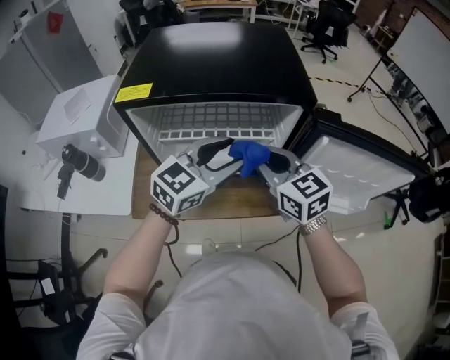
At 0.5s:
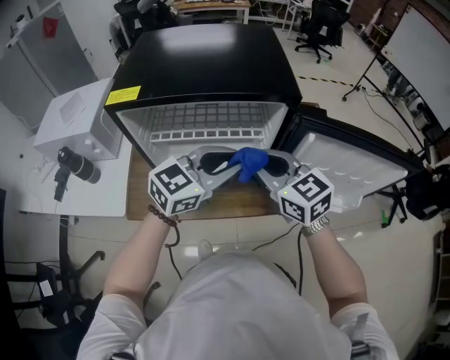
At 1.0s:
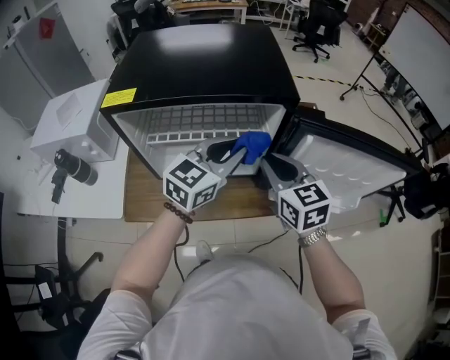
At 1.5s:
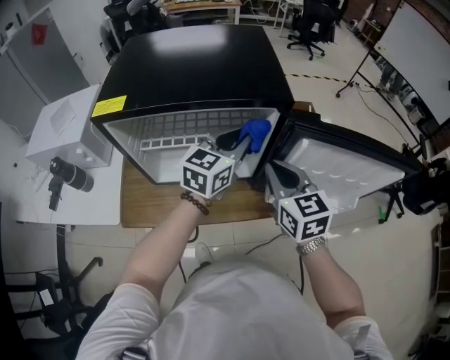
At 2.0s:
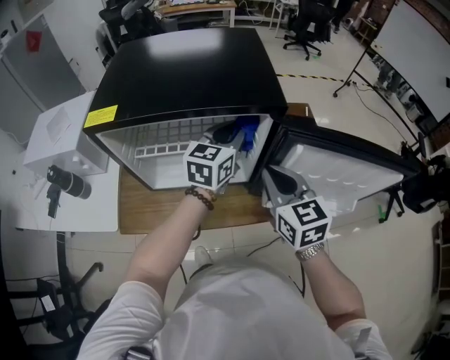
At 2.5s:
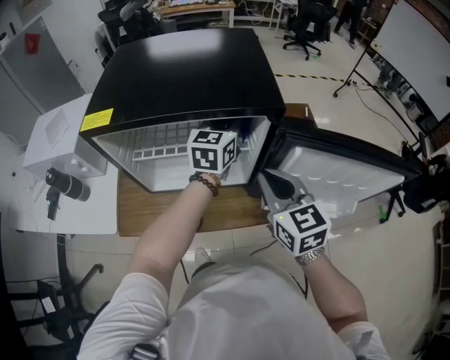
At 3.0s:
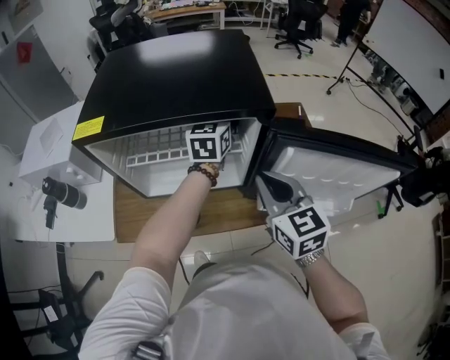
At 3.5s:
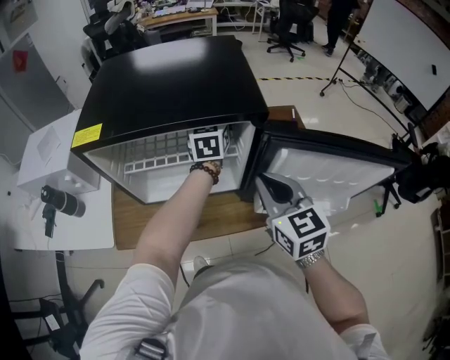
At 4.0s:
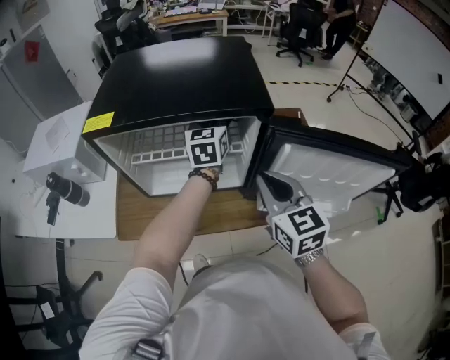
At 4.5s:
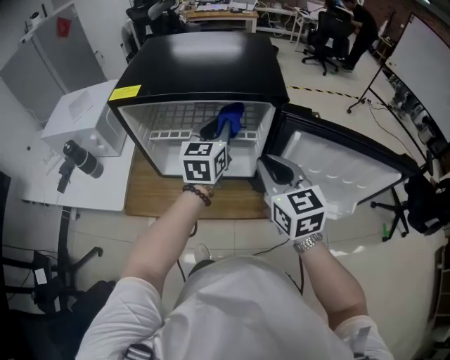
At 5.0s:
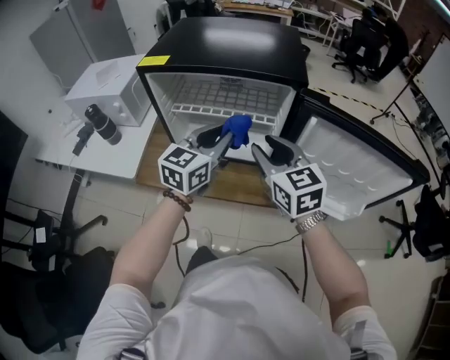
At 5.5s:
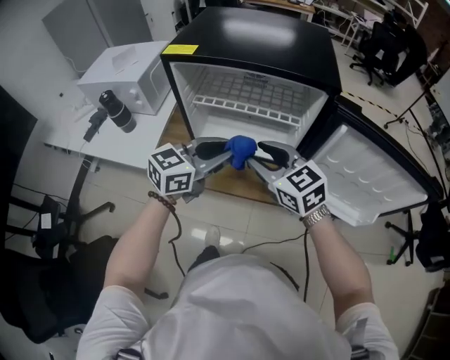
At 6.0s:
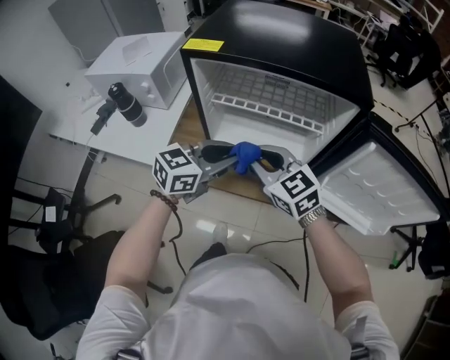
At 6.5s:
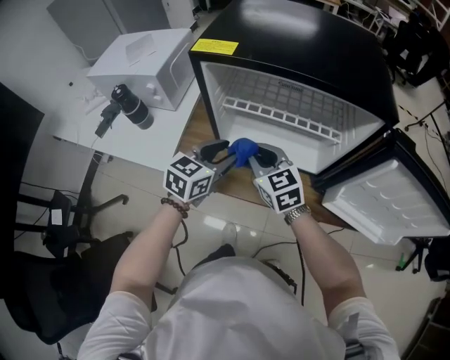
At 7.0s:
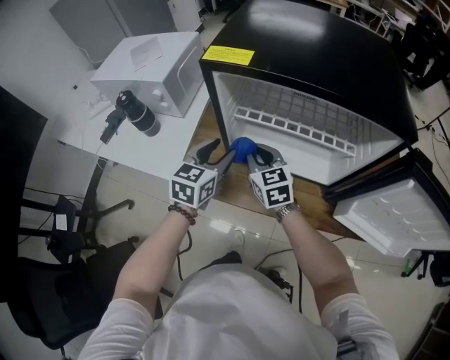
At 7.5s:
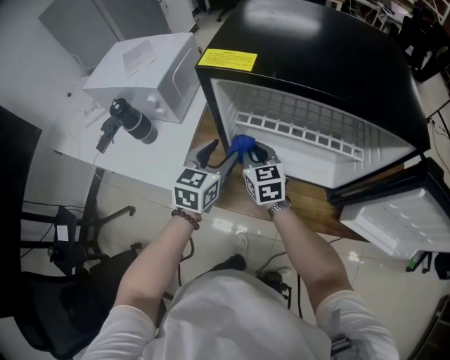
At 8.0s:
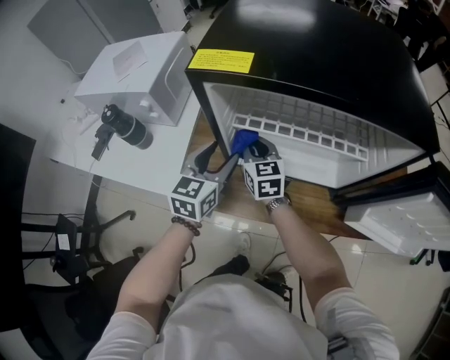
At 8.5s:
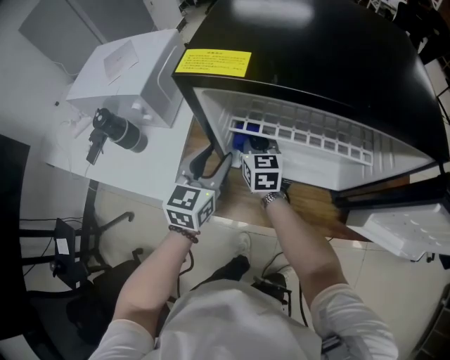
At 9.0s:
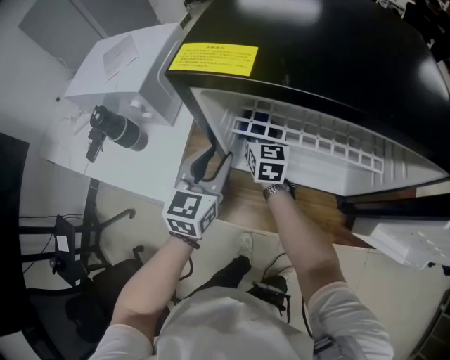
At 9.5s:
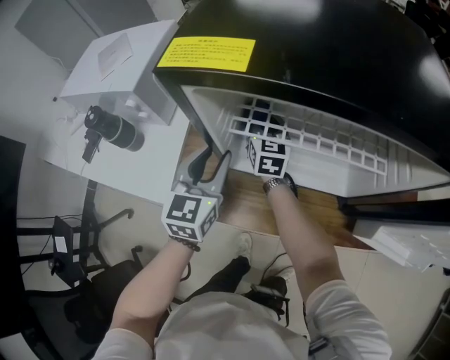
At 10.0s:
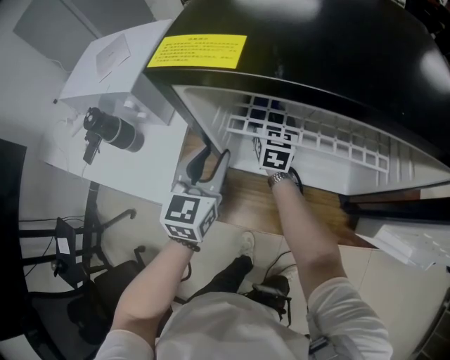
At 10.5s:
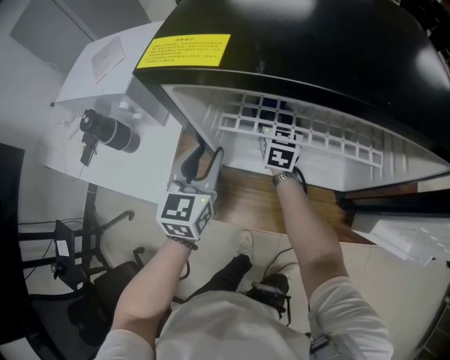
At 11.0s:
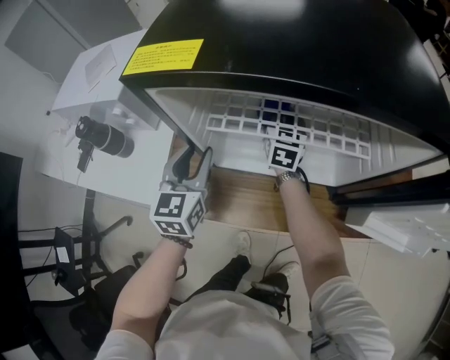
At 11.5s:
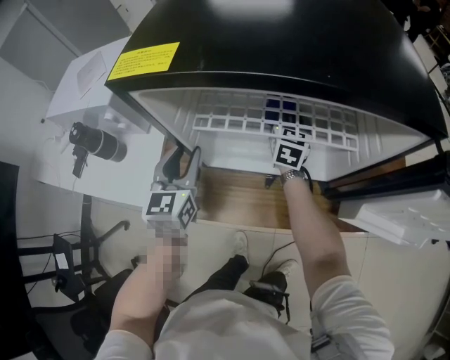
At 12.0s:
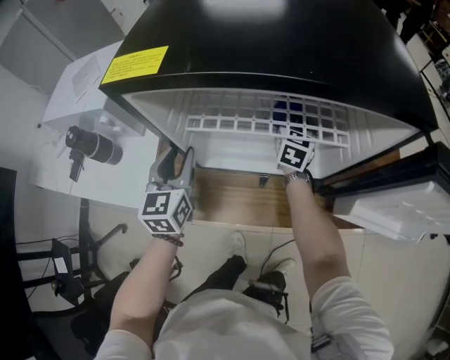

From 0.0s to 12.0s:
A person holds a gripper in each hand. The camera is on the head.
From 0.0s to 2.0s: The right gripper shifts about 10 cm to the right. The left gripper is displaced forward and to the right by roughly 15 cm, swivels some 20 degrees, and closes up.
From 2.0s to 4.0s: The left gripper goes approximately 5 cm forward.
From 4.0s to 6.0s: The left gripper is displaced backward and to the left by roughly 30 cm, and rotates some 30 degrees. The right gripper is displaced to the left by approximately 20 cm, swivels roughly 40 degrees, and opens, then closes again.
From 6.0s to 8.0s: The right gripper goes approximately 25 cm forward, downward and to the left, and changes its angle by about 30 degrees. The left gripper heads forward, to the left and downward, covering some 20 cm, changes its angle by about 30 degrees, and opens.
From 8.0s to 10.0s: The left gripper closes; the right gripper travels forward and to the right by approximately 15 cm.
From 10.0s to 12.0s: The right gripper is displaced to the right by some 20 cm.

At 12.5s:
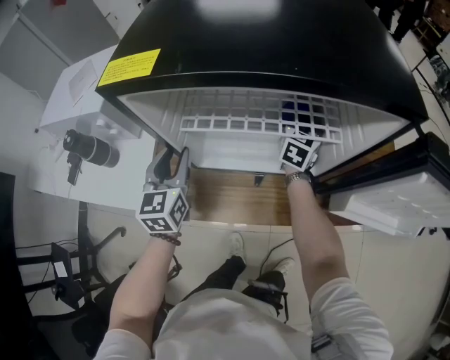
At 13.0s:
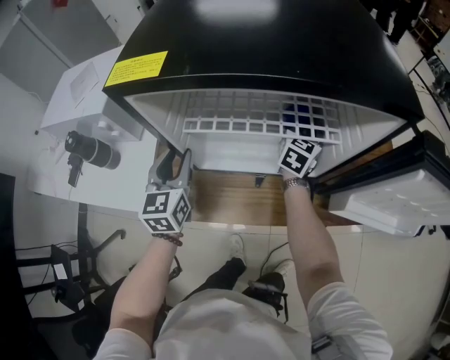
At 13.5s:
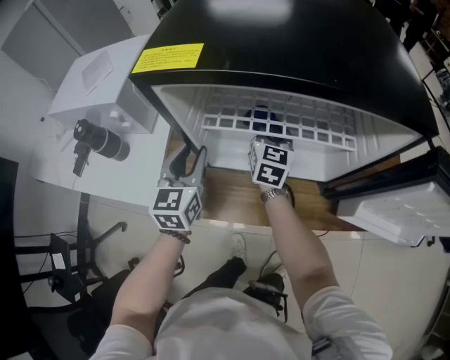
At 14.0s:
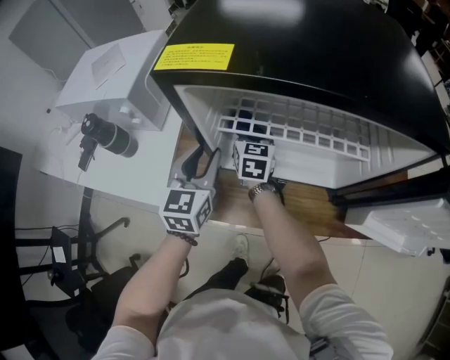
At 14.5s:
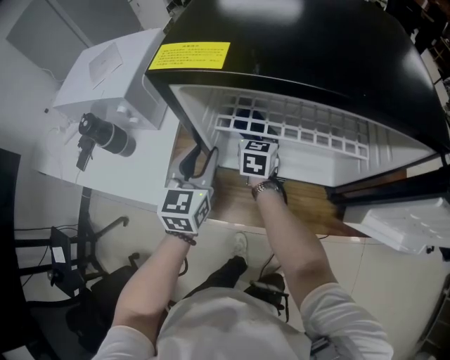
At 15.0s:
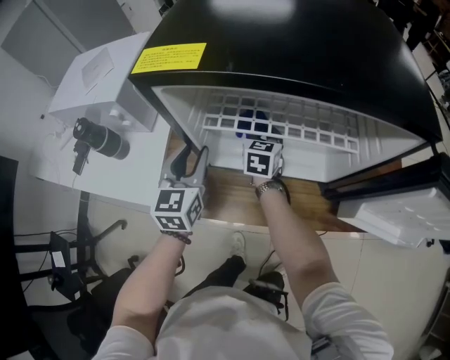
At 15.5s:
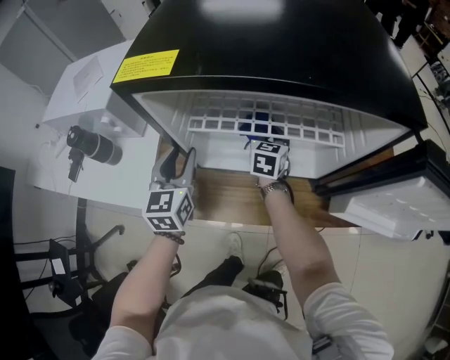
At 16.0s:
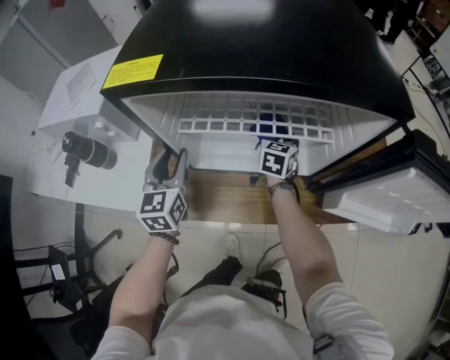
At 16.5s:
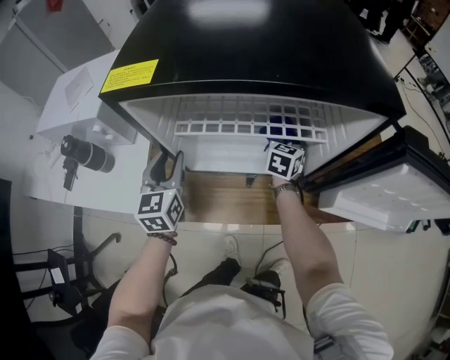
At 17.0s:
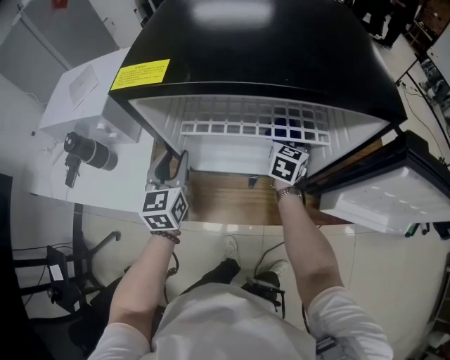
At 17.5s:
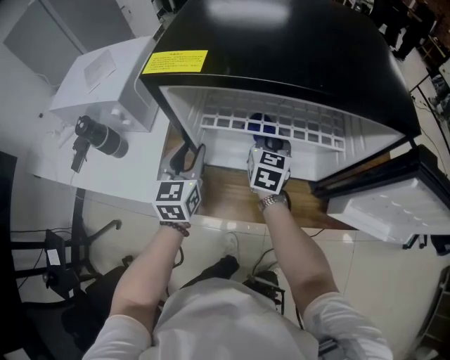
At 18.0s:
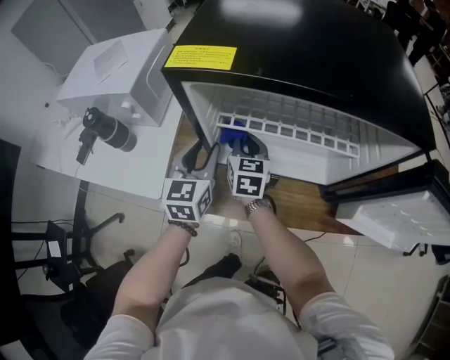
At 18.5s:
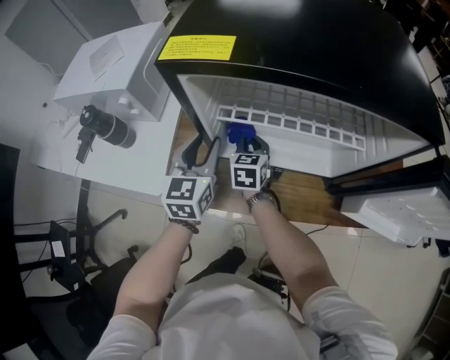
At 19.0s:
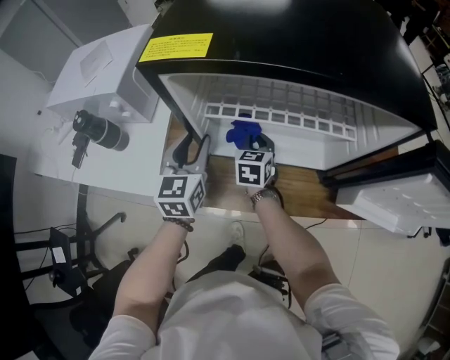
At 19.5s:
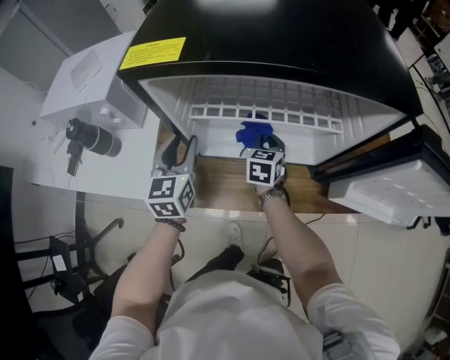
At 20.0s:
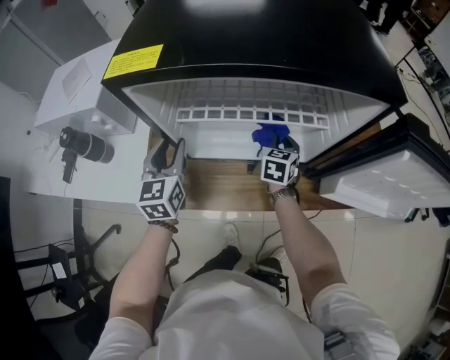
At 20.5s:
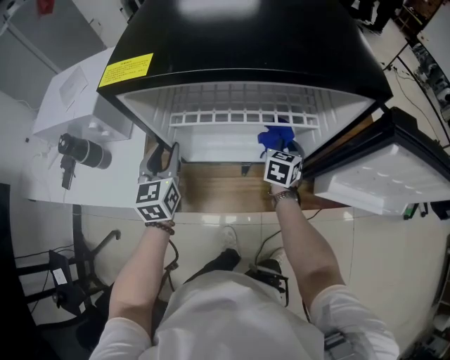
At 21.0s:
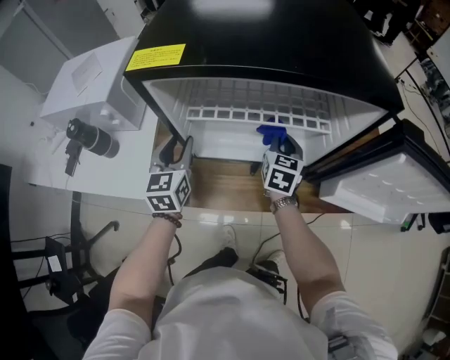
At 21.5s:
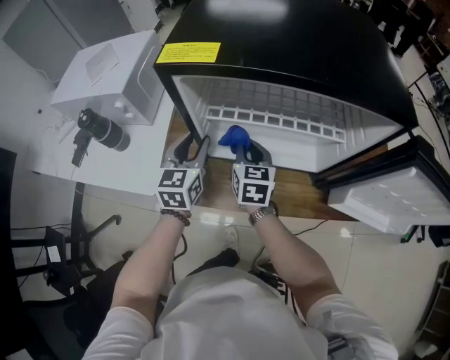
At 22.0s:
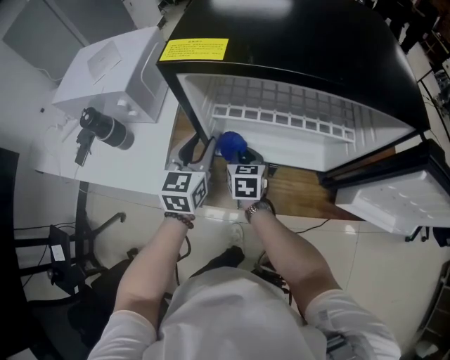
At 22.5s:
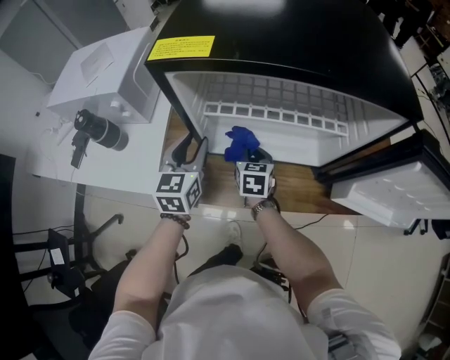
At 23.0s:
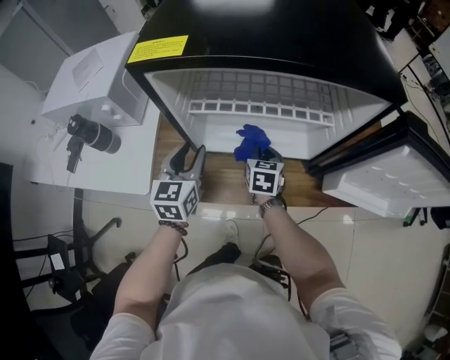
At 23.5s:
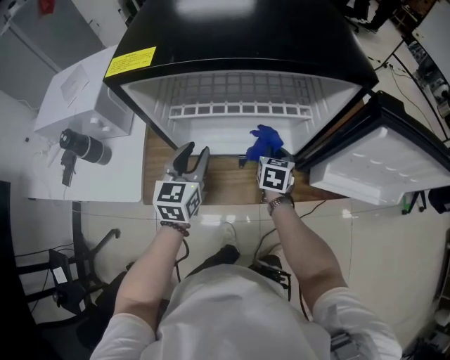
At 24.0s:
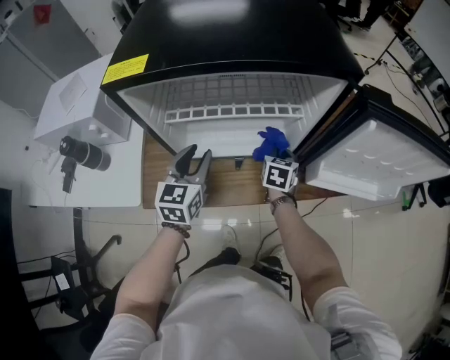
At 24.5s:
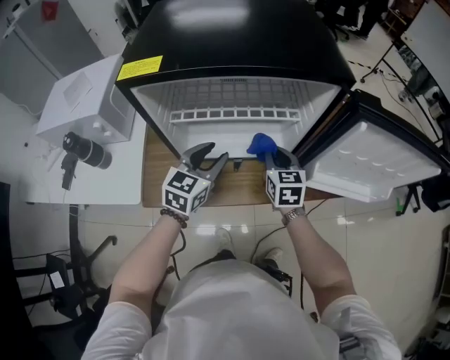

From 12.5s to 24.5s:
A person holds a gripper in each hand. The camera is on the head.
From 12.5s to 14.5s: The right gripper shifts some 25 cm to the left, and turns by approximately 20 degrees.
From 14.5s to 16.5s: The right gripper shifts approximately 25 cm to the right, and rotates some 20 degrees.
From 16.5s to 18.5s: The right gripper is displaced to the left by some 25 cm, and turns by approximately 30 degrees.
From 18.5s to 20.5s: The right gripper is displaced to the right by approximately 25 cm, and rotates roughly 30 degrees.
From 20.5s to 22.5s: The right gripper heads to the left, covering about 20 cm, and turns by about 20 degrees.
From 22.5s to 24.5s: The right gripper travels to the right and upward by some 20 cm. The left gripper shifts some 15 cm to the right, and turns by approximately 30 degrees.

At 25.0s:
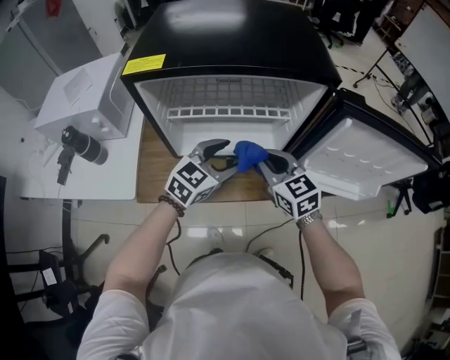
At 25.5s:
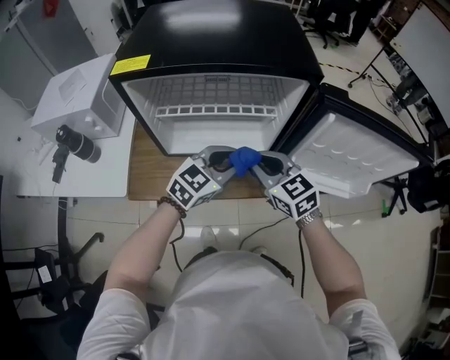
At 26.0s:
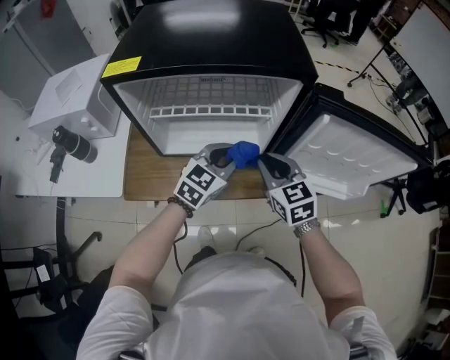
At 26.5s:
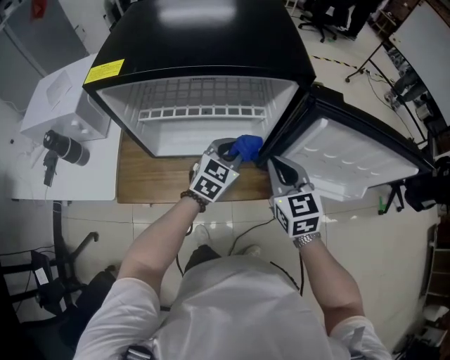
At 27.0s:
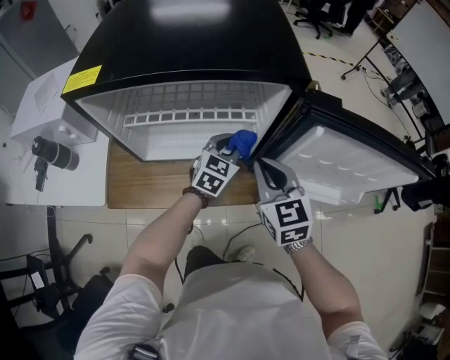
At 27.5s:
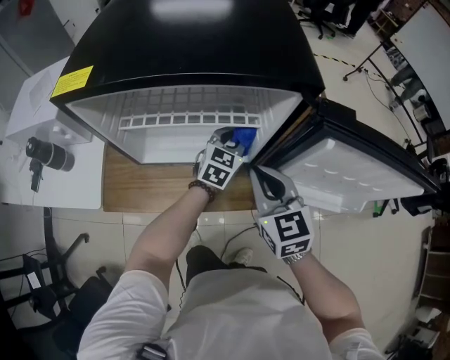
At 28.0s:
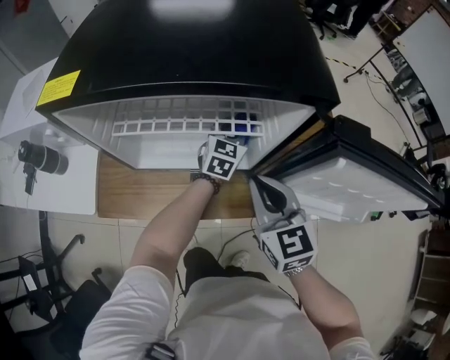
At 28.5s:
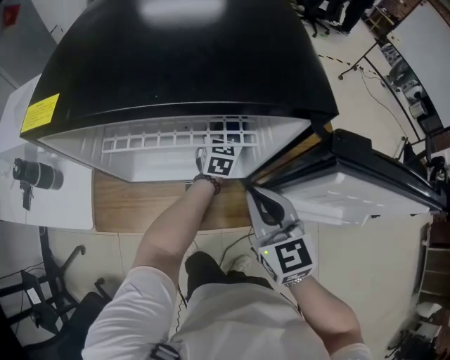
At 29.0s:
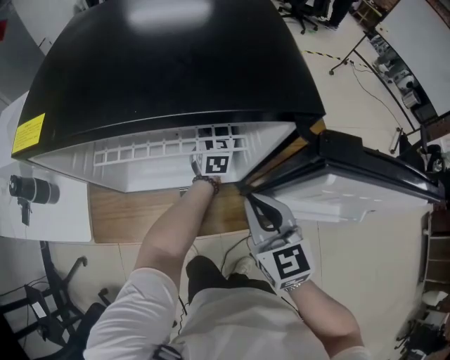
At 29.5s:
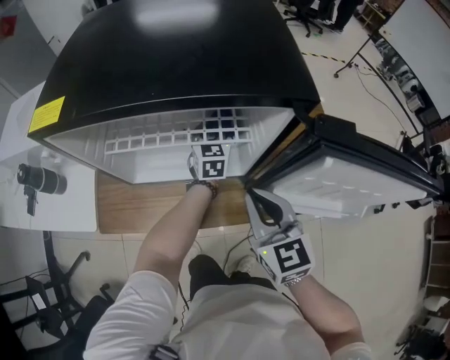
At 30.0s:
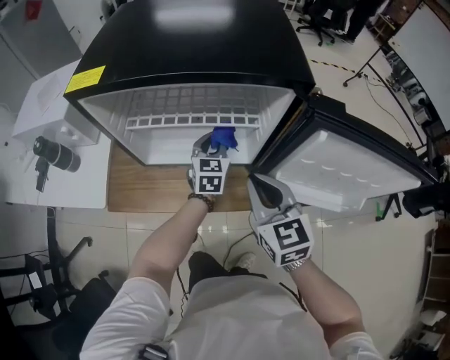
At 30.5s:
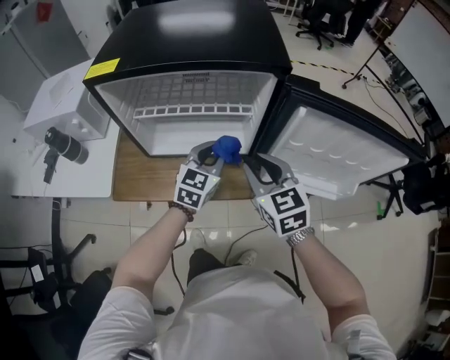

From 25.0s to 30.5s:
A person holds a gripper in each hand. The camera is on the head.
From 25.0s to 27.0s: The right gripper shifts roughly 10 cm to the right, while the left gripper travels forward, to the right and downward by about 15 cm, and closes.
From 27.0s to 28.5s: The left gripper moves forward, some 15 cm.
From 28.5s to 30.5s: The left gripper goes roughly 20 cm backward. The right gripper changes place by some 5 cm, and opens.
